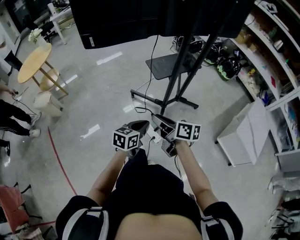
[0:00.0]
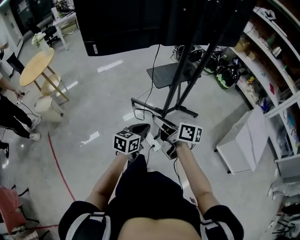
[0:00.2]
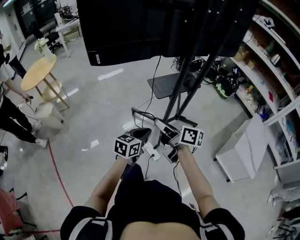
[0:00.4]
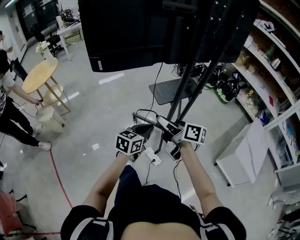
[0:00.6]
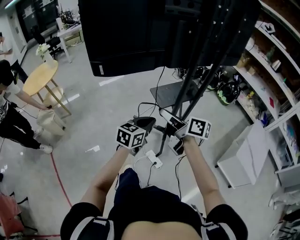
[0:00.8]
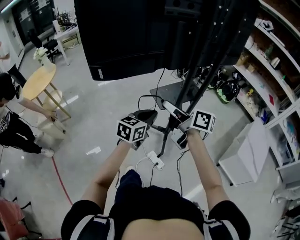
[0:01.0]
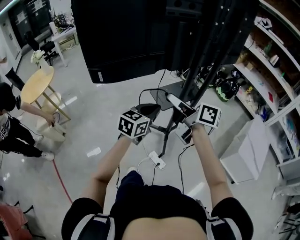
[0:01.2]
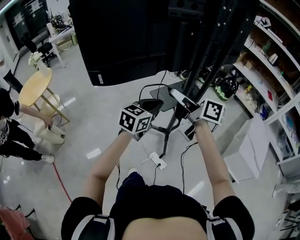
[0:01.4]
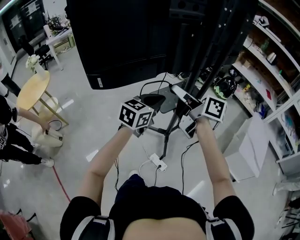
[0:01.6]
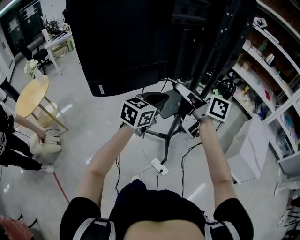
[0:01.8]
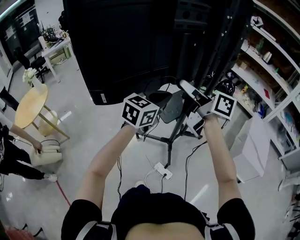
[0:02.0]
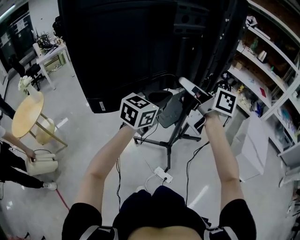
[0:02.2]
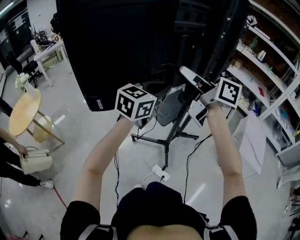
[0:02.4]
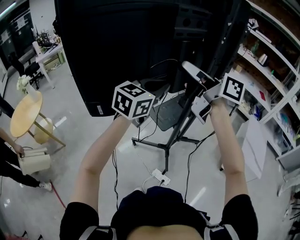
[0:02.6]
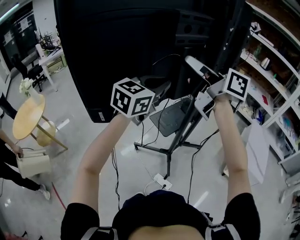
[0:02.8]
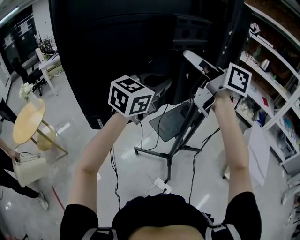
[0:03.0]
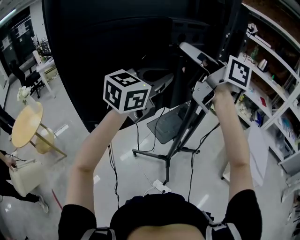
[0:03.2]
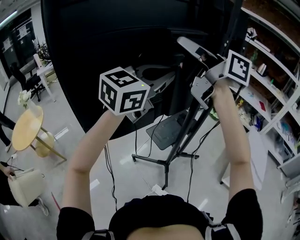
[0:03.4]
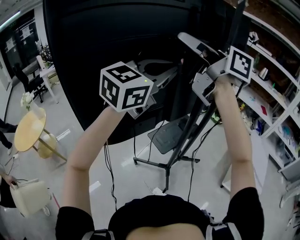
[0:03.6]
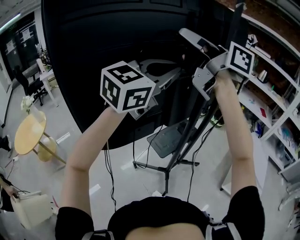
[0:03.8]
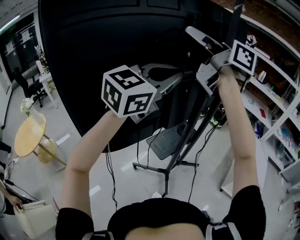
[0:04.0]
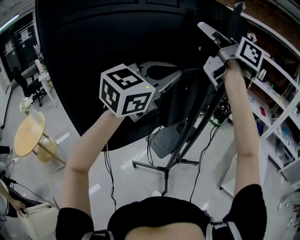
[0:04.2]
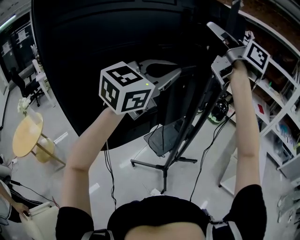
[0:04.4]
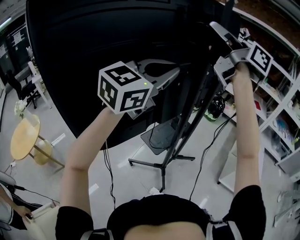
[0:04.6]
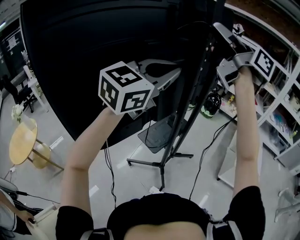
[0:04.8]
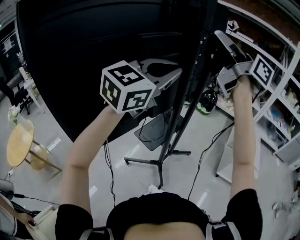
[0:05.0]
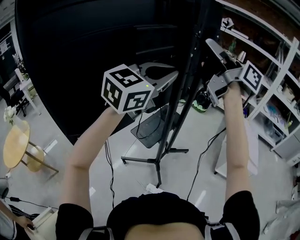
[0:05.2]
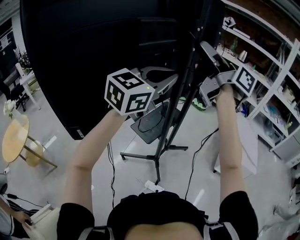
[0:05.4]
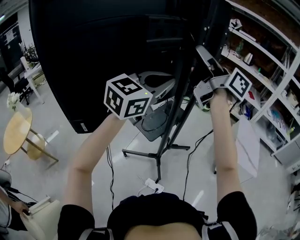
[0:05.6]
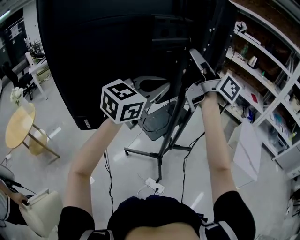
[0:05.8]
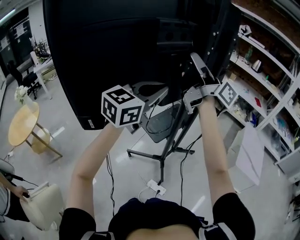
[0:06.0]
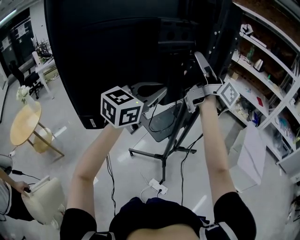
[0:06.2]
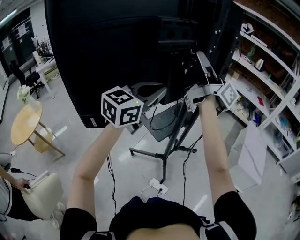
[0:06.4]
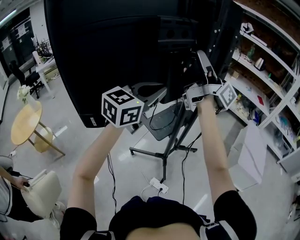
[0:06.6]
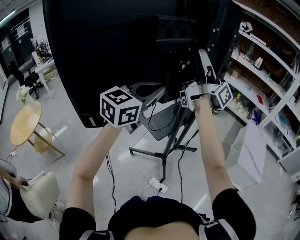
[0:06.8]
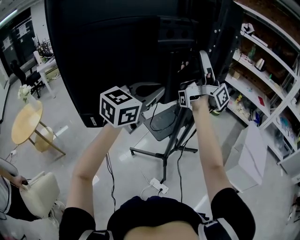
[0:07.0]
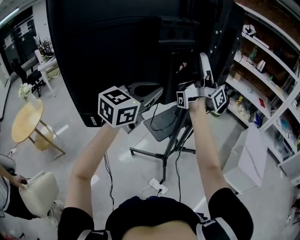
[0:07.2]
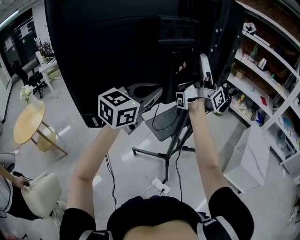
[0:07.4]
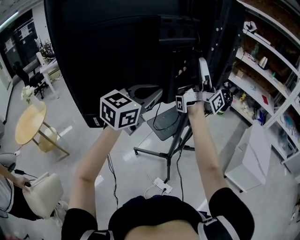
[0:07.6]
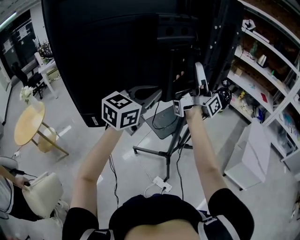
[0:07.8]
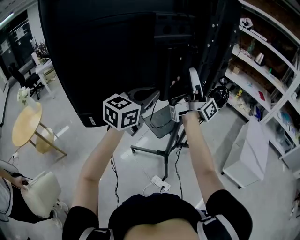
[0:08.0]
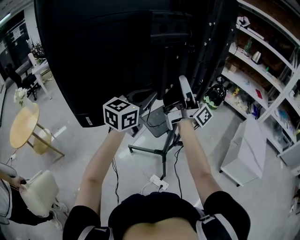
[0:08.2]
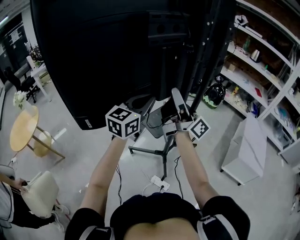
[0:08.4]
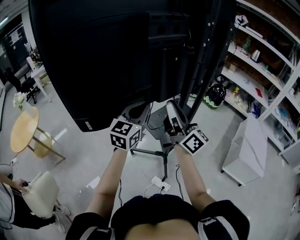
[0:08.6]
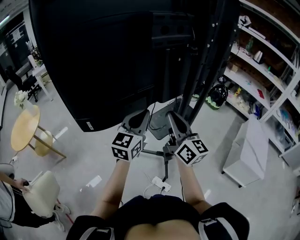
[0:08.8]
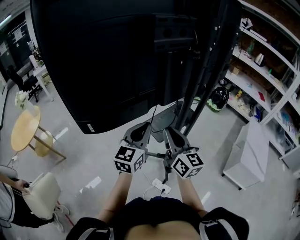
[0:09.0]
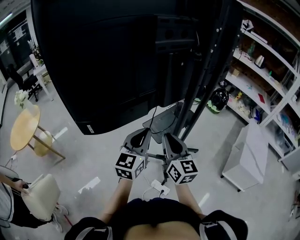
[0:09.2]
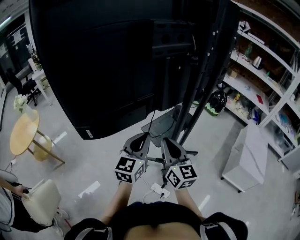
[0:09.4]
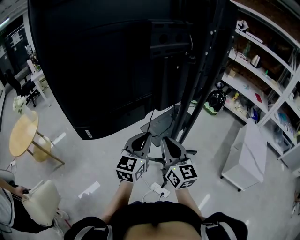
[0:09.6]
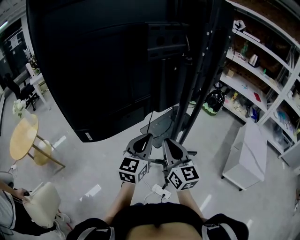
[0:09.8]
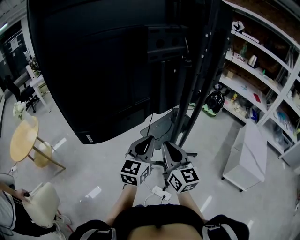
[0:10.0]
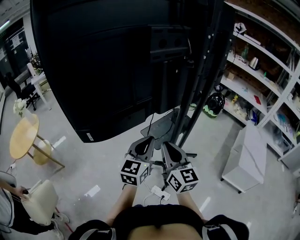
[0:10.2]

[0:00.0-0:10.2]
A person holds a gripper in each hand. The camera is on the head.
0:00.0 to 0:01.4: The right gripper shifts some 30 cm upward and forward. Meanwhile the left gripper travels forward and upward by about 30 cm, and swivels approximately 20 degrees.
0:01.4 to 0:03.0: The two grippers go about 25 cm upward and forward. The left gripper rotates roughly 20 degrees.
0:03.0 to 0:04.4: The right gripper is displaced upward, to the right and forward by about 25 cm. The left gripper travels upward by about 15 cm.
0:04.4 to 0:05.8: The left gripper travels downward by about 15 cm. The right gripper shifts about 20 cm downward and backward.
0:05.8 to 0:07.2: The right gripper angles its fingers upward, by roughly 30 degrees.
0:07.2 to 0:08.8: The left gripper shifts about 15 cm downward, and swivels some 20 degrees, while the right gripper shifts roughly 25 cm downward and backward, angles its fingers downward, by approximately 40 degrees, and closes.
0:08.8 to 0:10.2: The right gripper moves downward and backward, about 10 cm, while the left gripper changes place by about 5 cm.

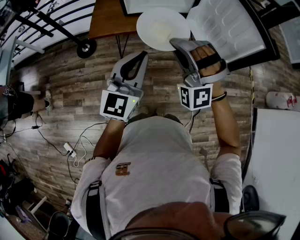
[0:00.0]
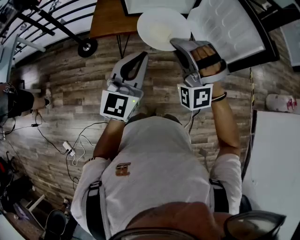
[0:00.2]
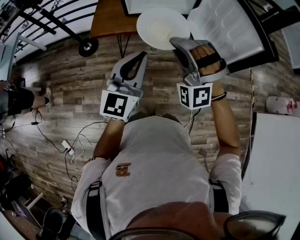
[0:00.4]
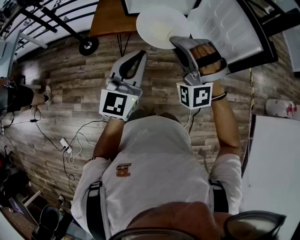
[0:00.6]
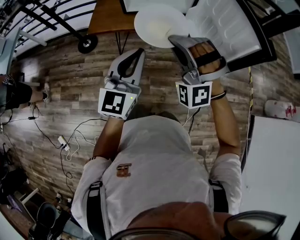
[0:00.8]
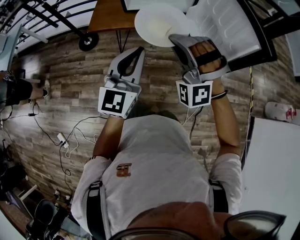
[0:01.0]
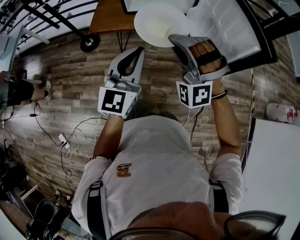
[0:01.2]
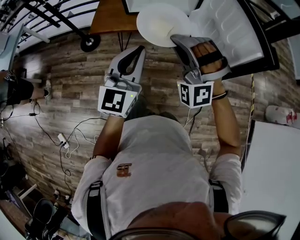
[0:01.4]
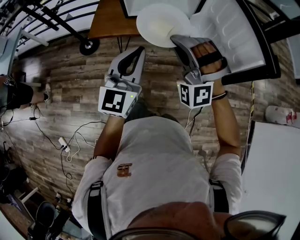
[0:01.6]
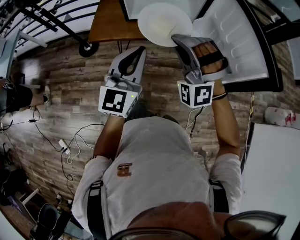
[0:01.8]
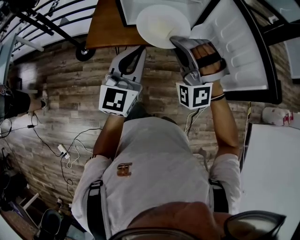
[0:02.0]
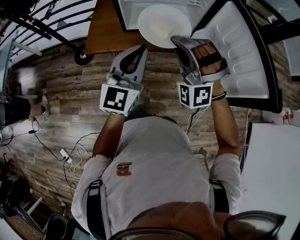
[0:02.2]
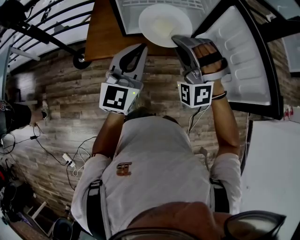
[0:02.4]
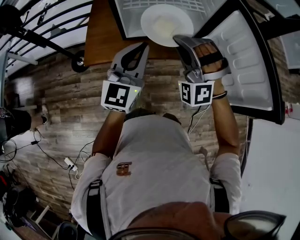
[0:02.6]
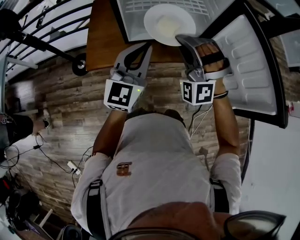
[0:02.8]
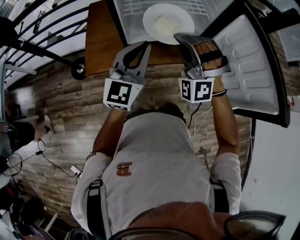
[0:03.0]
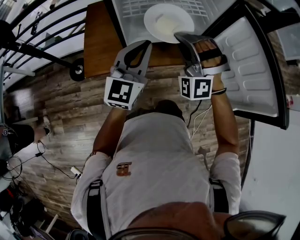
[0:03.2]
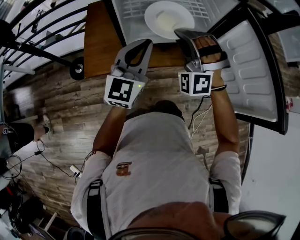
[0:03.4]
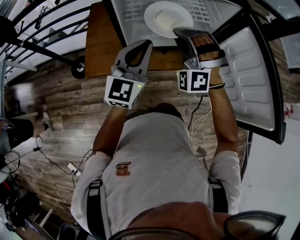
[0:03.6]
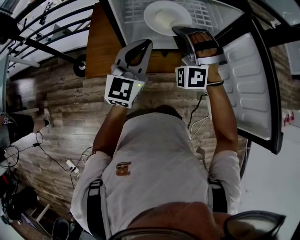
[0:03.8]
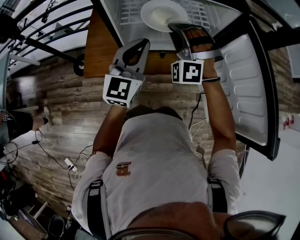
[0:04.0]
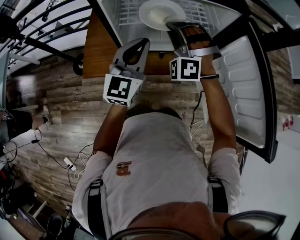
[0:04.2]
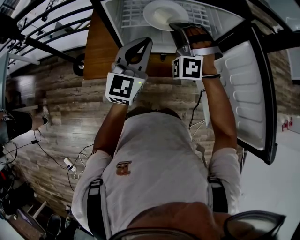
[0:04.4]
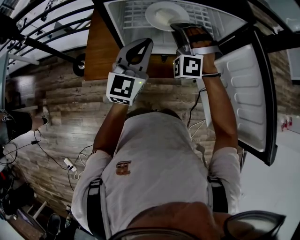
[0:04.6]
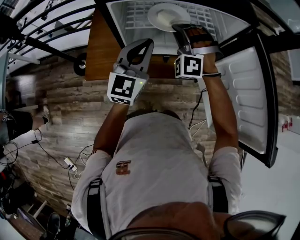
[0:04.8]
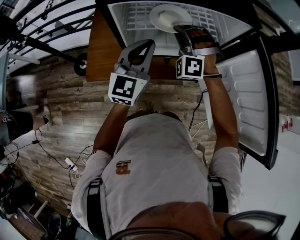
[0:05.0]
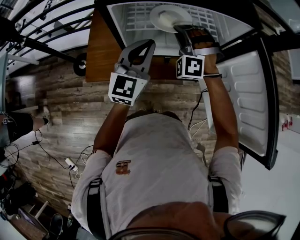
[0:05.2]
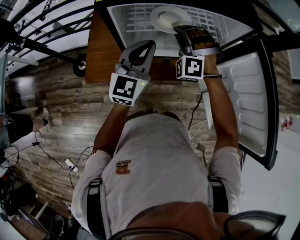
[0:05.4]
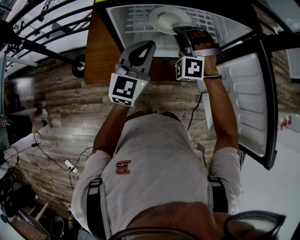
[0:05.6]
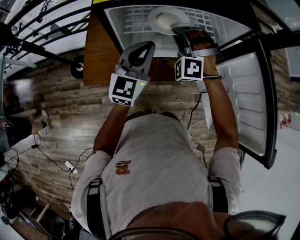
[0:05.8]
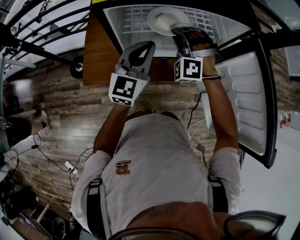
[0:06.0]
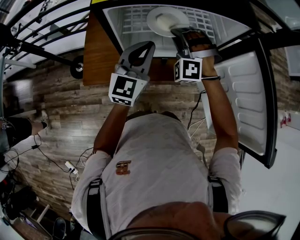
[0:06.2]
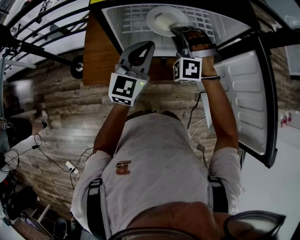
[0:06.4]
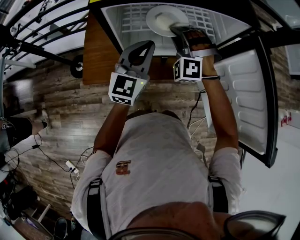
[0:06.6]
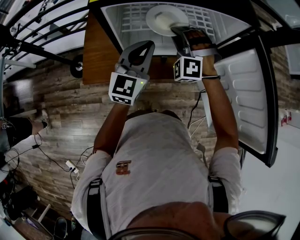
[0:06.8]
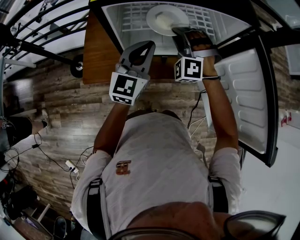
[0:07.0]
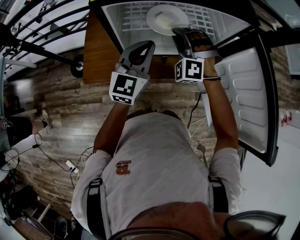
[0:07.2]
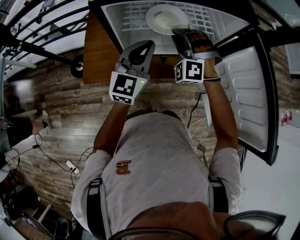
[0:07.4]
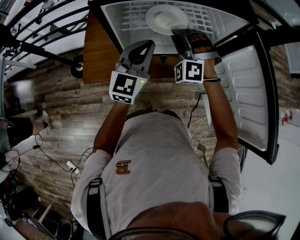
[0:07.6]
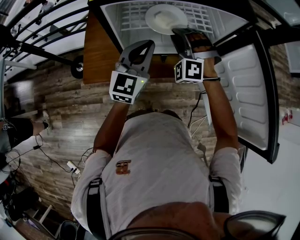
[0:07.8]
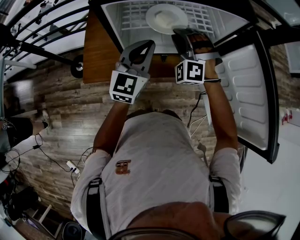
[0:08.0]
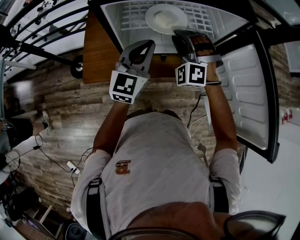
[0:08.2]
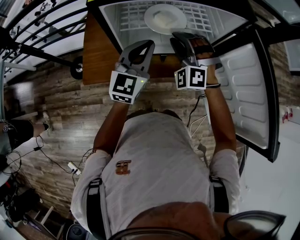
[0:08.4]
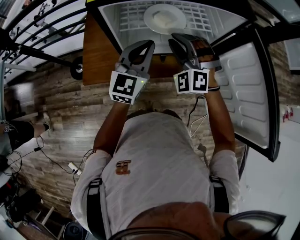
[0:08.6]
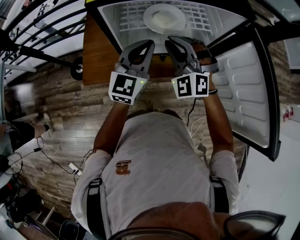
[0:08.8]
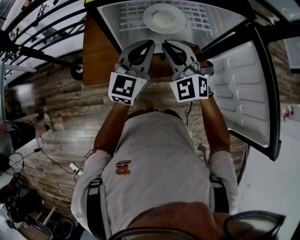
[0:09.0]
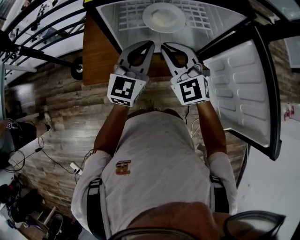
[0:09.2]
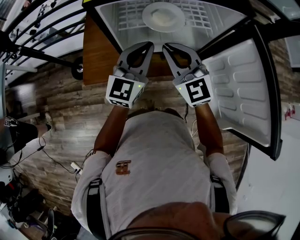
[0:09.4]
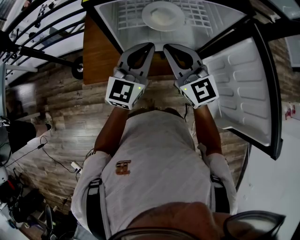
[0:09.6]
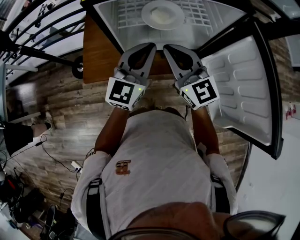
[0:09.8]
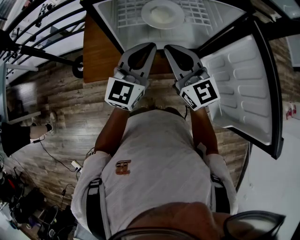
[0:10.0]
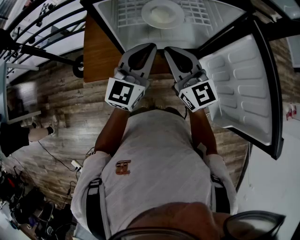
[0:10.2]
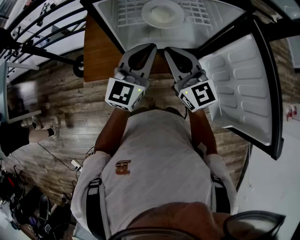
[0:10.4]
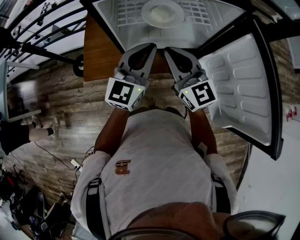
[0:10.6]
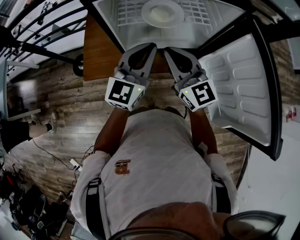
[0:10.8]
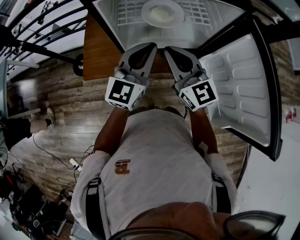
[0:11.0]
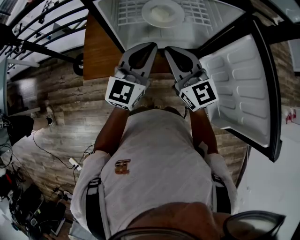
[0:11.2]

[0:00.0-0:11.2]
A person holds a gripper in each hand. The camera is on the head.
0:00.0 to 0:01.6: The left gripper changes place by approximately 5 cm.
0:01.6 to 0:03.2: The left gripper changes place by roughly 30 cm.
0:03.2 to 0:04.8: The left gripper changes place by roughly 10 cm.

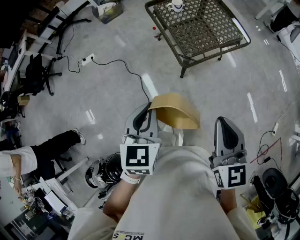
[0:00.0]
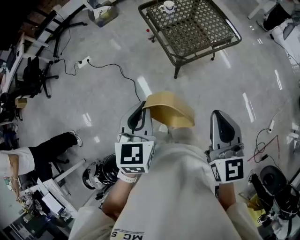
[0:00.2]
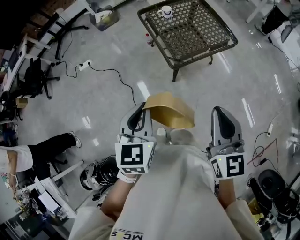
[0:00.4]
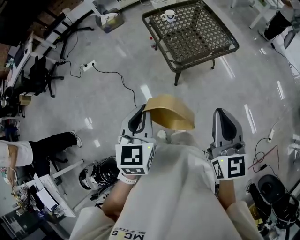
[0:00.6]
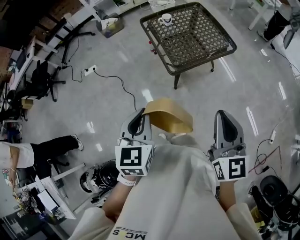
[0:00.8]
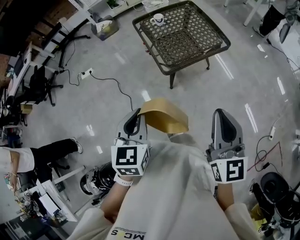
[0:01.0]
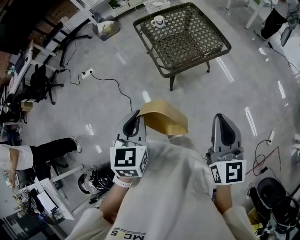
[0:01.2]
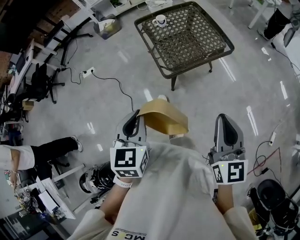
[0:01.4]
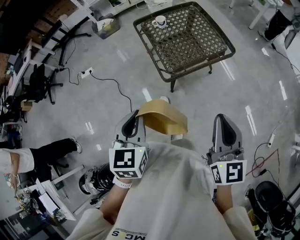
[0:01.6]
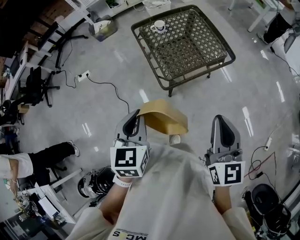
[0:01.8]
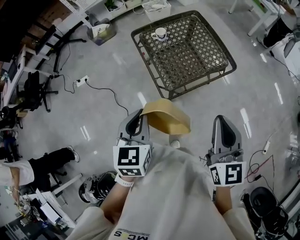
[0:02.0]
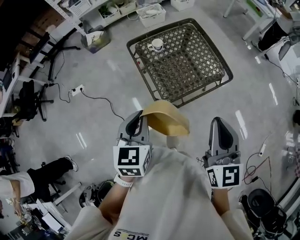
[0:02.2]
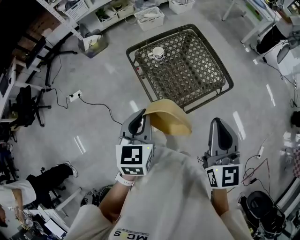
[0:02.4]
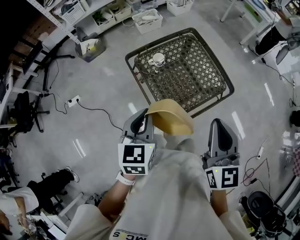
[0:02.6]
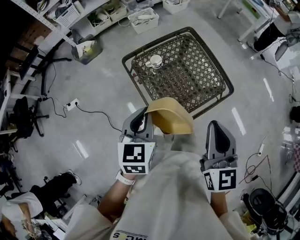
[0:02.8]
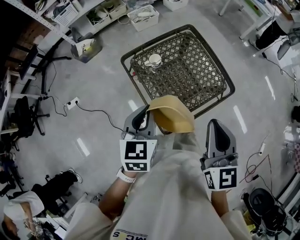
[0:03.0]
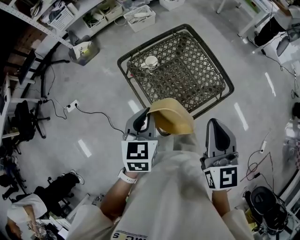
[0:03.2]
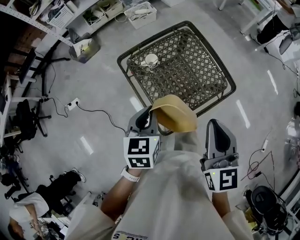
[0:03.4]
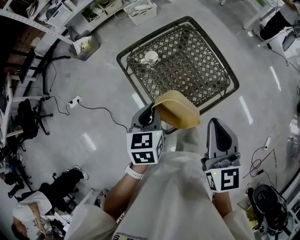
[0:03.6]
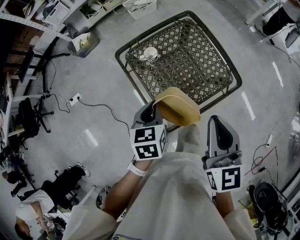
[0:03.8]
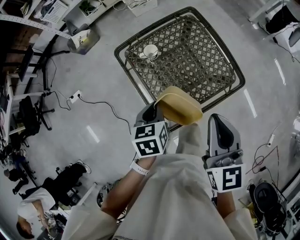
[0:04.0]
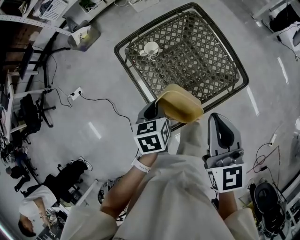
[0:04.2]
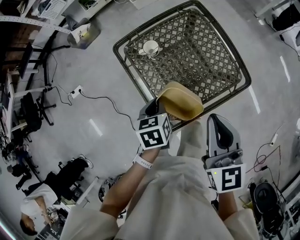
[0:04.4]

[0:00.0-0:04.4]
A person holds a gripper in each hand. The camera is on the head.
0:00.0 to 0:01.4: The right gripper shifts approximately 15 cm to the right; the left gripper shifts about 10 cm to the right.
0:01.4 to 0:03.0: Both grippers move forward, roughly 35 cm.
0:03.0 to 0:04.4: The left gripper heads downward, covering approximately 20 cm, and changes its angle by some 30 degrees. Meanwhile the right gripper heads downward and forward, covering about 10 cm.
